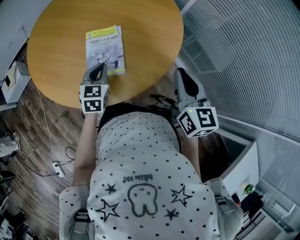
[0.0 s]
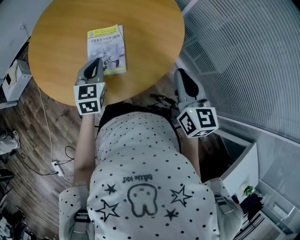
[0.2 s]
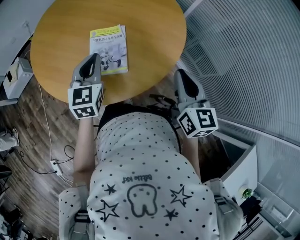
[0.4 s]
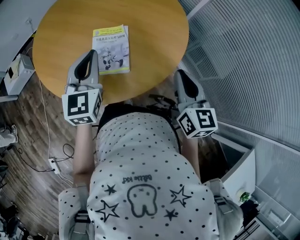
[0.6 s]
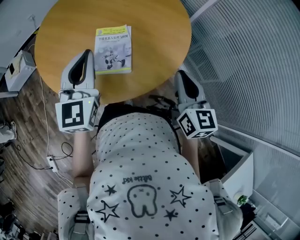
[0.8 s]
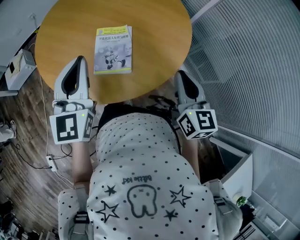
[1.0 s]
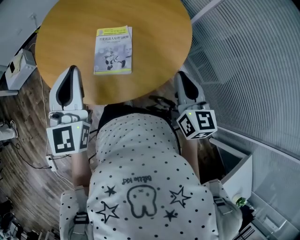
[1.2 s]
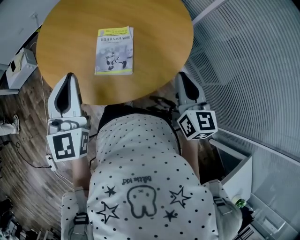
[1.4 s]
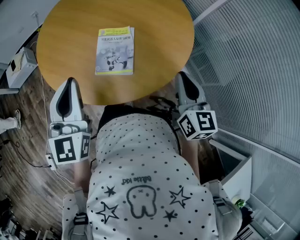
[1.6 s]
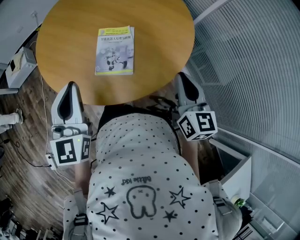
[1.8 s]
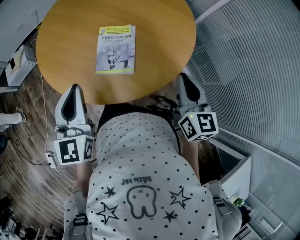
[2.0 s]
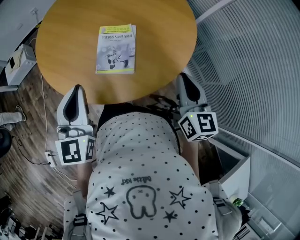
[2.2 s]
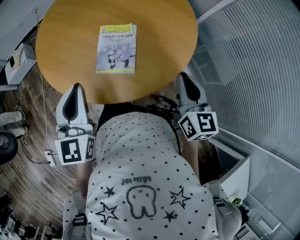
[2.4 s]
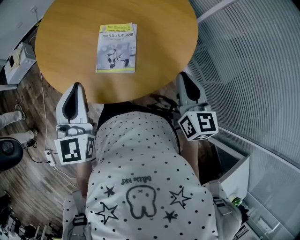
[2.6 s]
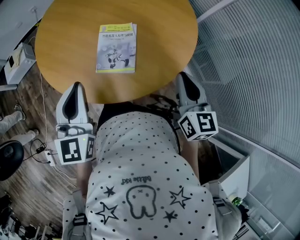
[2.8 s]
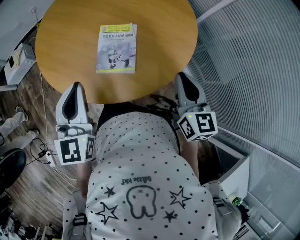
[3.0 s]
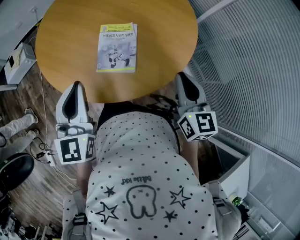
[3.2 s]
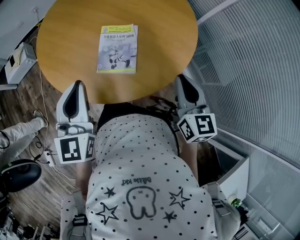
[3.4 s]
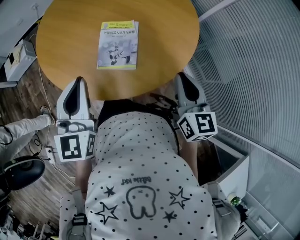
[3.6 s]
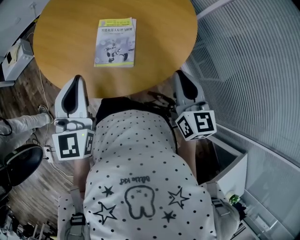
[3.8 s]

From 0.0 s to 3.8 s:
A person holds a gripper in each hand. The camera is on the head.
From 0.0 s to 1.2 s: The left gripper is displaced upward by approximately 20 cm, and swivels about 30 degrees.
From 1.2 s to 2.6 s: The left gripper changes place by approximately 5 cm.
From 2.6 s to 3.8 s: There are only small adjustments of the grippers.

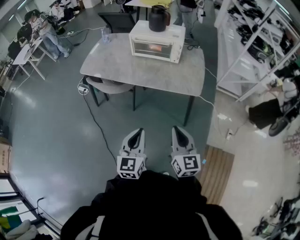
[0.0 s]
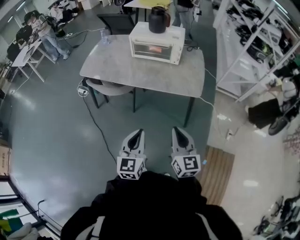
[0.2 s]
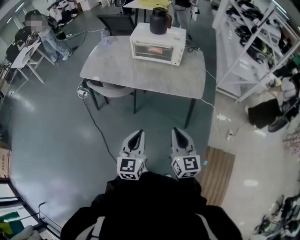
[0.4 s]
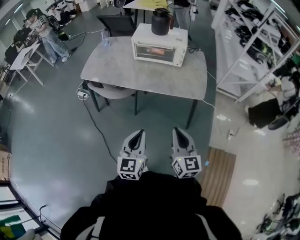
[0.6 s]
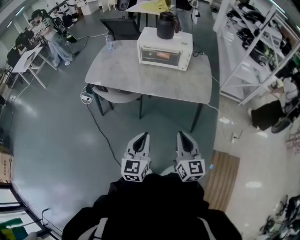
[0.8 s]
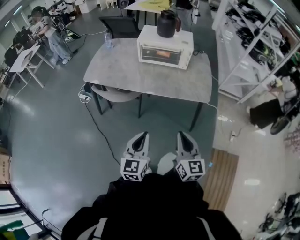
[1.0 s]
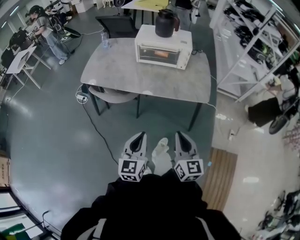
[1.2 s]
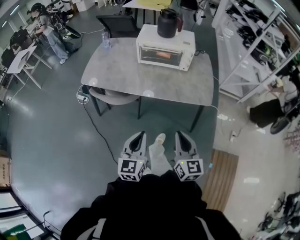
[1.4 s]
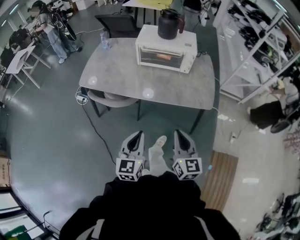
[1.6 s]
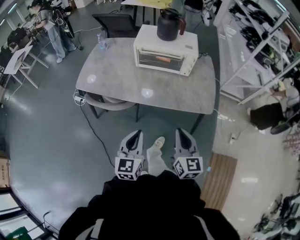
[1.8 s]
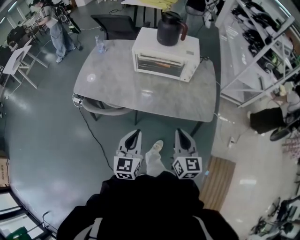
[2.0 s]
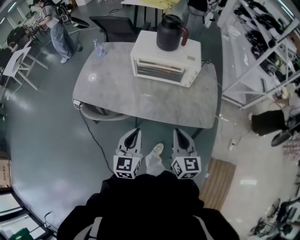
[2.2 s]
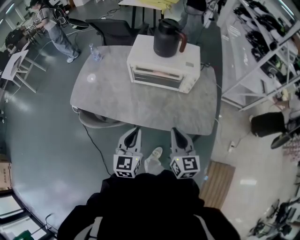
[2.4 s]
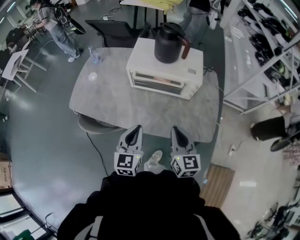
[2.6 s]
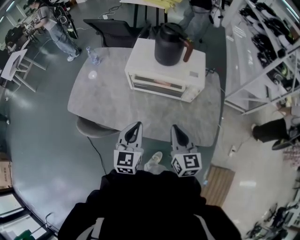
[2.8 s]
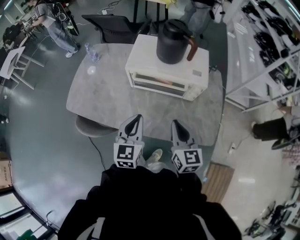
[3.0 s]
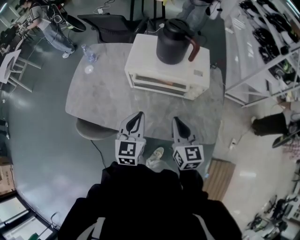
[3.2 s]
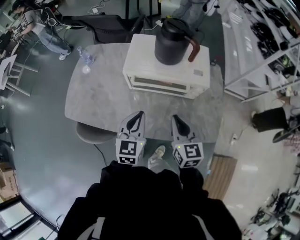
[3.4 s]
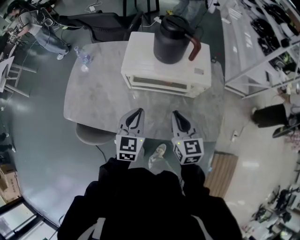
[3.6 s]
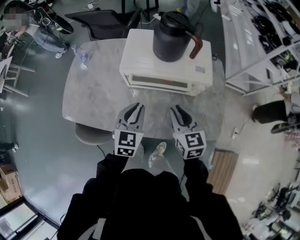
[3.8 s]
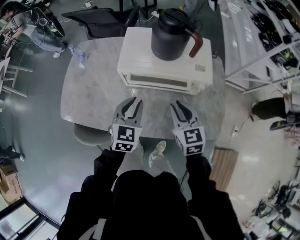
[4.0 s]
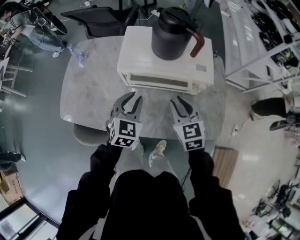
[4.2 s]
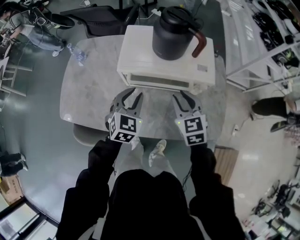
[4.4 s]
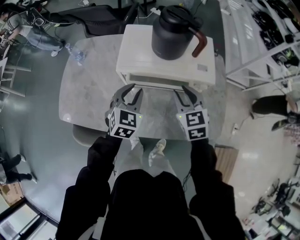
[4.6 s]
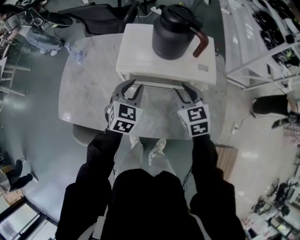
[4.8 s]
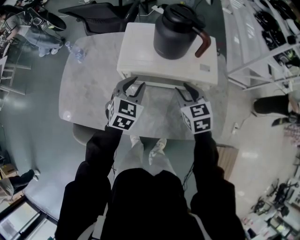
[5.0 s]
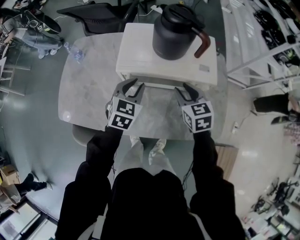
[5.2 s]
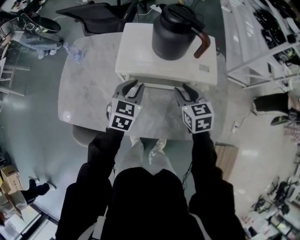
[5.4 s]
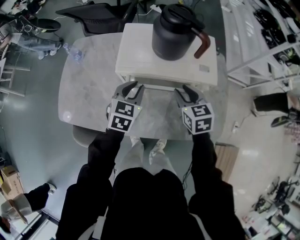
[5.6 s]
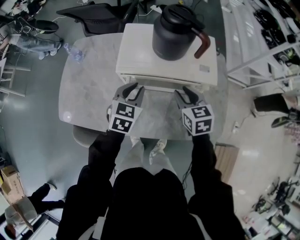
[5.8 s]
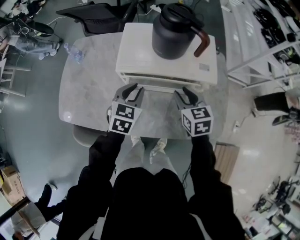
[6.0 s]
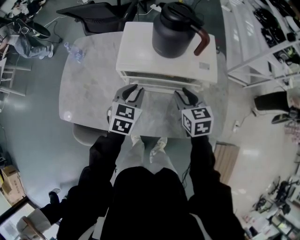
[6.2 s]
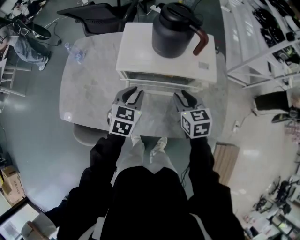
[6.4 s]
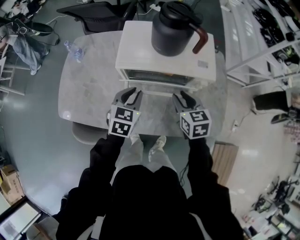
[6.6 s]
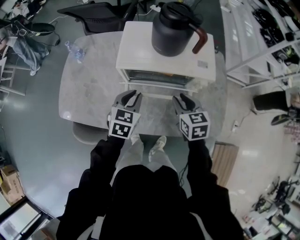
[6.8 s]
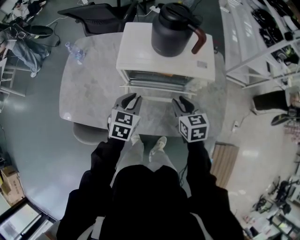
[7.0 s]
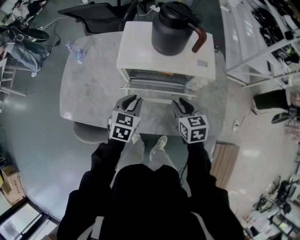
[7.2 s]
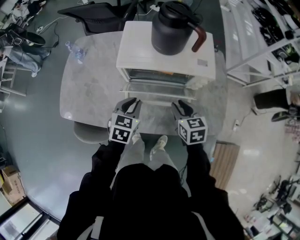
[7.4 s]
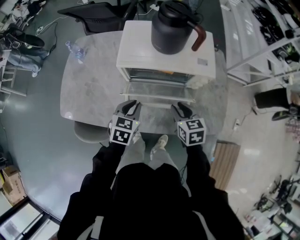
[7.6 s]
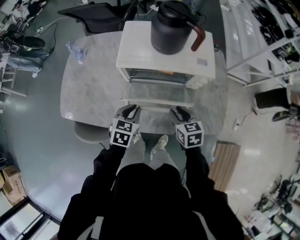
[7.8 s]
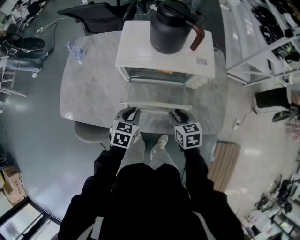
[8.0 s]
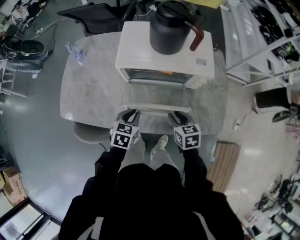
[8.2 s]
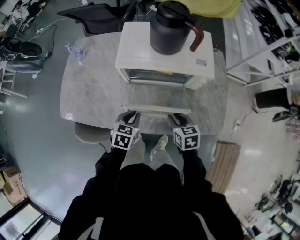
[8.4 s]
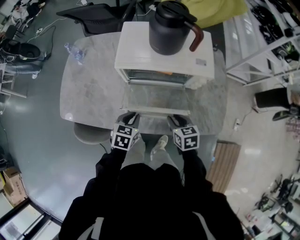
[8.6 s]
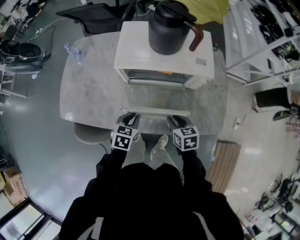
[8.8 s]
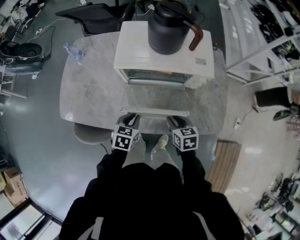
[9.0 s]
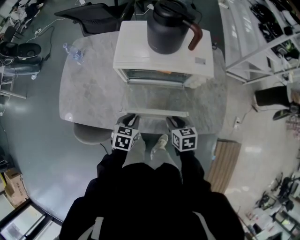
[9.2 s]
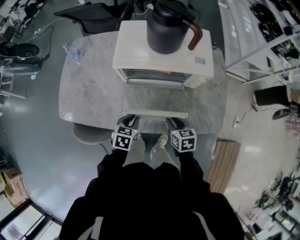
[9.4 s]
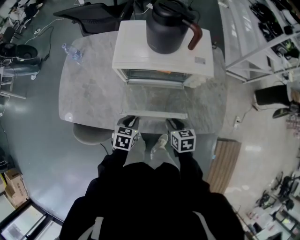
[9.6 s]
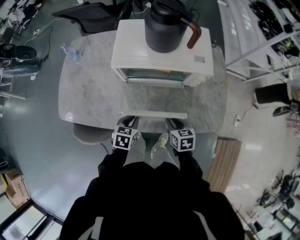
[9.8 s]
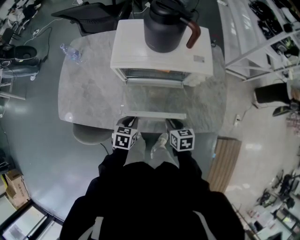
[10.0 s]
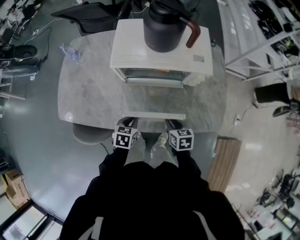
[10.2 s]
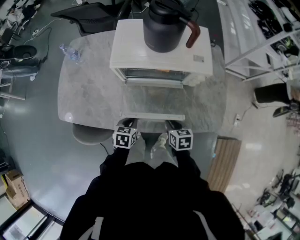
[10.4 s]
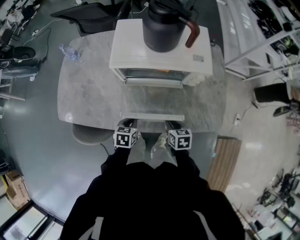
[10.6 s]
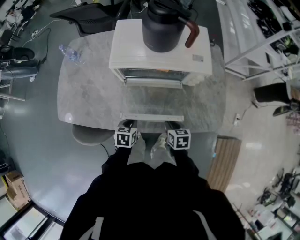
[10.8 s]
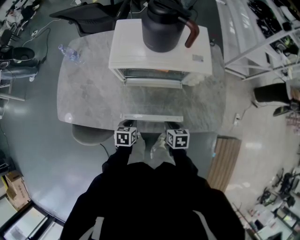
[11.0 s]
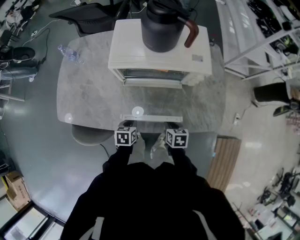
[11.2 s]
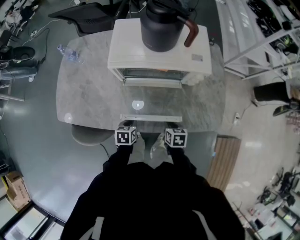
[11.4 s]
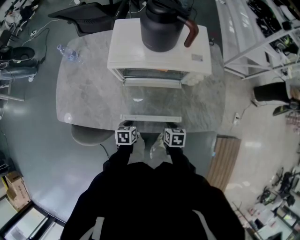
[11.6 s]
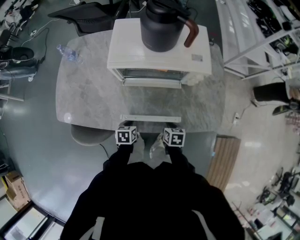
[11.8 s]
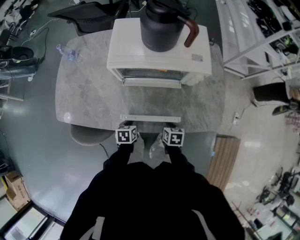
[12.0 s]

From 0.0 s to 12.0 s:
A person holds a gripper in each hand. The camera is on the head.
From 0.0 s to 1.6 s: Both grippers move forward and to the left, roughly 20 cm.
From 1.6 s to 3.0 s: Both grippers move forward, about 40 cm.
From 3.0 s to 4.4 s: The grippers both shift forward by some 15 cm. The left gripper changes its angle by about 30 degrees, and opens. Meanwhile the right gripper rotates approximately 20 degrees, and opens up.
From 4.4 s to 6.0 s: The grippers move only a little.
From 6.0 s to 7.6 s: The grippers both shift backward by approximately 10 cm.
From 7.6 s to 9.0 s: The grippers both shift downward and backward by about 10 cm.
From 9.0 s to 10.4 s: The grippers both shift downward by roughly 5 cm.
From 10.4 s to 12.0 s: The grippers both shift downward by roughly 5 cm.

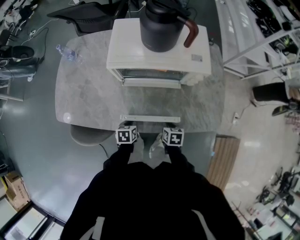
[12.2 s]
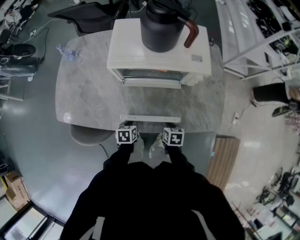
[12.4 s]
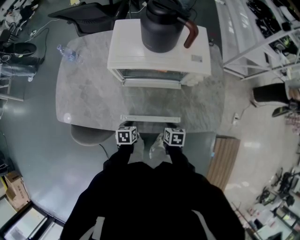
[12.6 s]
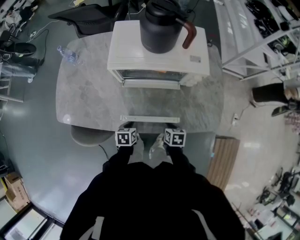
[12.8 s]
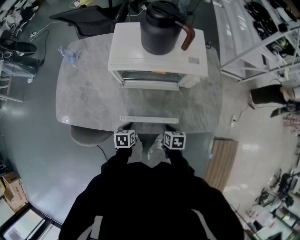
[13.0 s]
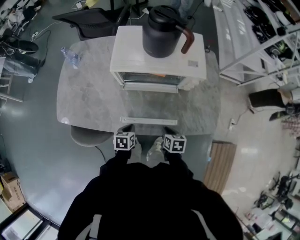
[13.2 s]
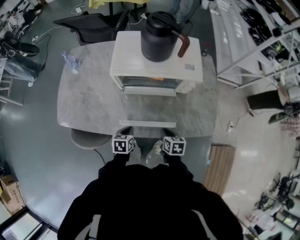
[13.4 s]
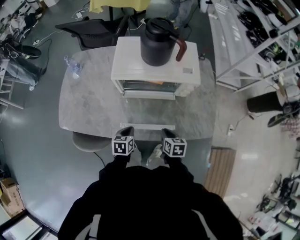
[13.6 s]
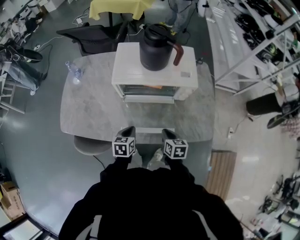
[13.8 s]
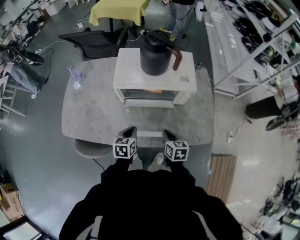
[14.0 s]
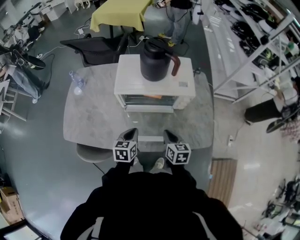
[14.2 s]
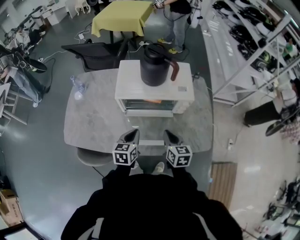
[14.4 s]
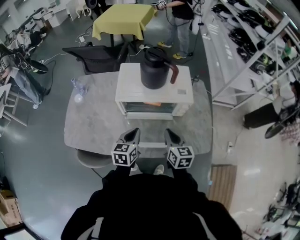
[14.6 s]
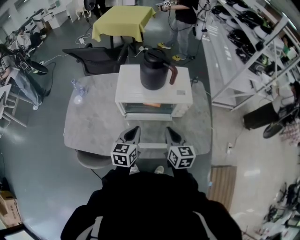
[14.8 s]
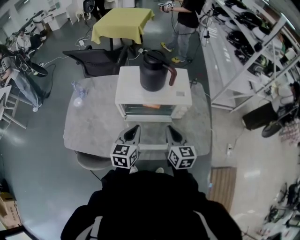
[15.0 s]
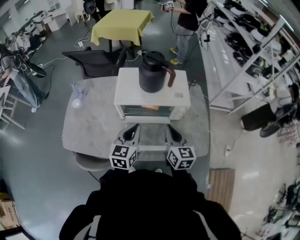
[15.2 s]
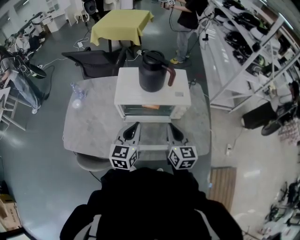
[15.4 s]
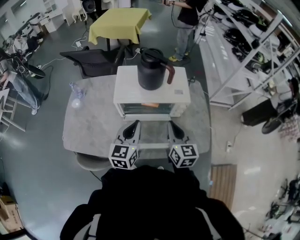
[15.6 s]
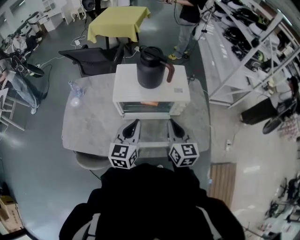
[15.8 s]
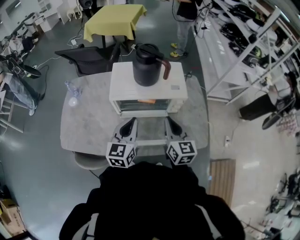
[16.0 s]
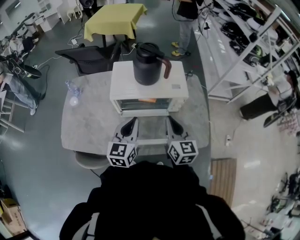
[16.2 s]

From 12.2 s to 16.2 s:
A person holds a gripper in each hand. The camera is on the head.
From 12.2 s to 13.6 s: The grippers both shift upward by some 10 cm.
From 13.6 s to 14.8 s: The grippers both shift upward by approximately 20 cm. The left gripper swivels approximately 30 degrees, while the right gripper swivels approximately 30 degrees.
From 14.8 s to 16.2 s: Both grippers travel together upward, some 5 cm.

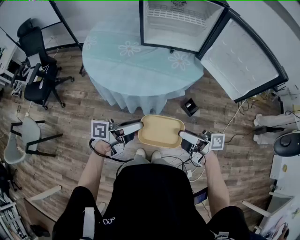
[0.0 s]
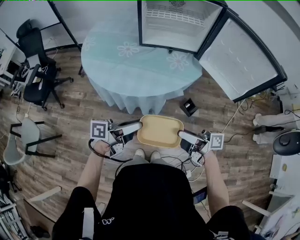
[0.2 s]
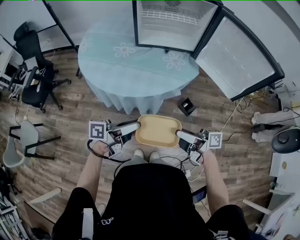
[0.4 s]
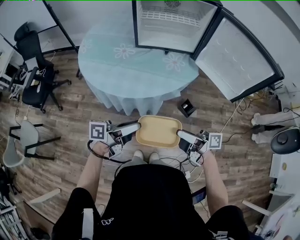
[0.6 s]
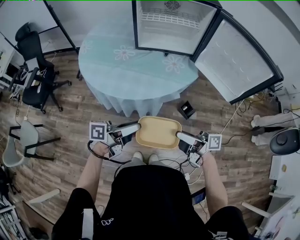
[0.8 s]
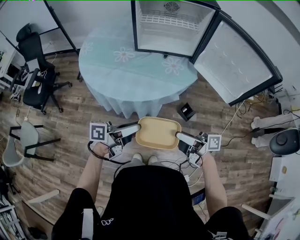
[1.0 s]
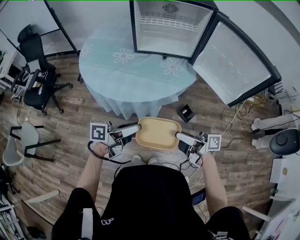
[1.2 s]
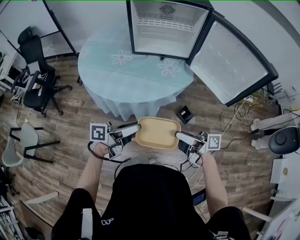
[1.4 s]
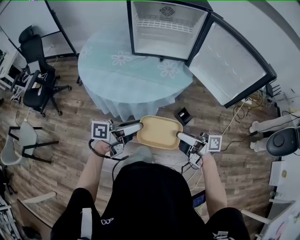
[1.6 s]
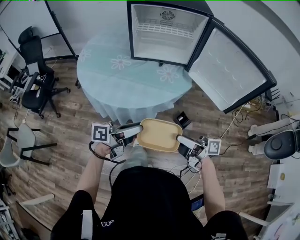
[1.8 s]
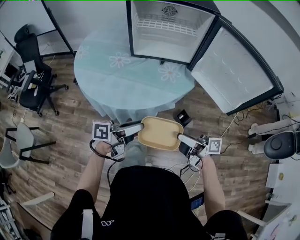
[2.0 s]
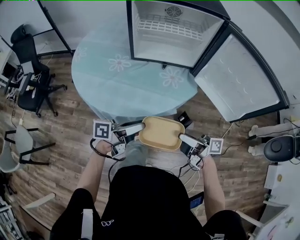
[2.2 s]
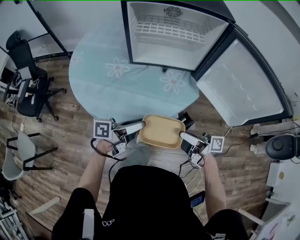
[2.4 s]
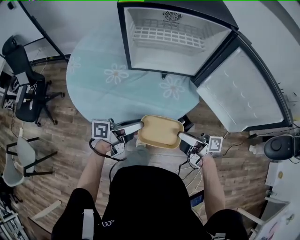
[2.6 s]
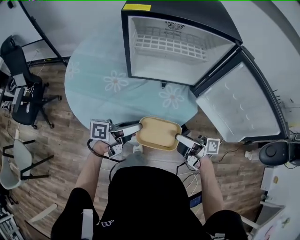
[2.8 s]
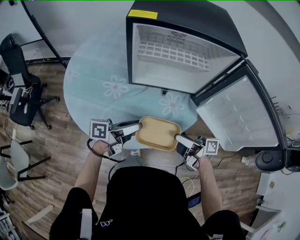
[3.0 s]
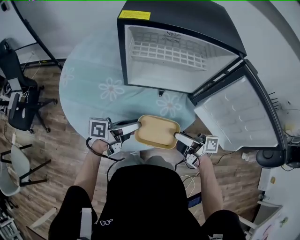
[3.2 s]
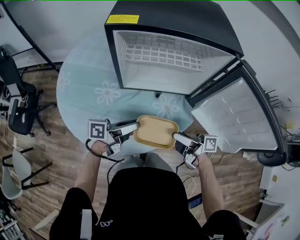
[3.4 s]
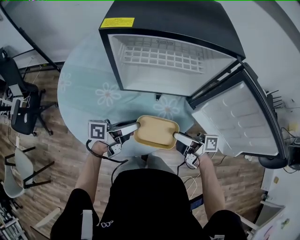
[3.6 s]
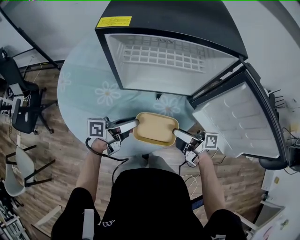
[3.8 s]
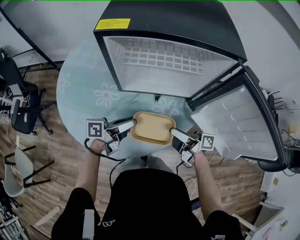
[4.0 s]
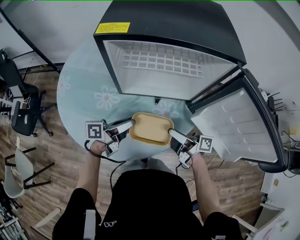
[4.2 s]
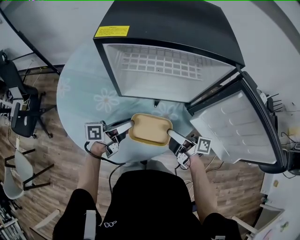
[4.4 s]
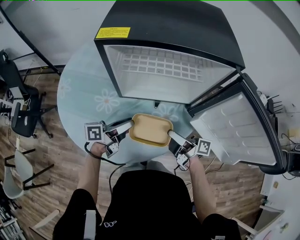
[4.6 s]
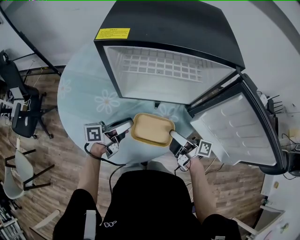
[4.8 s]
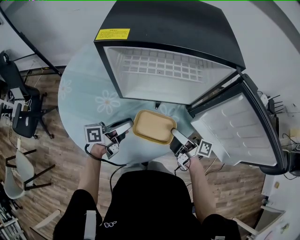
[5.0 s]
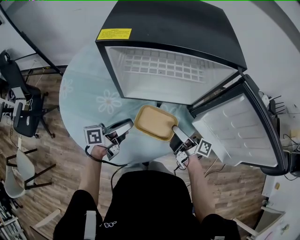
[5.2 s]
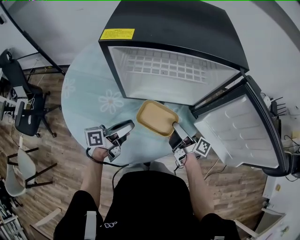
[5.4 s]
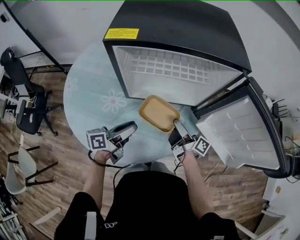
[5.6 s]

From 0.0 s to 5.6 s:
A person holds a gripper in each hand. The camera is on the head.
From 0.0 s to 1.4 s: The grippers move only a little.
From 1.4 s to 2.8 s: The right gripper changes place by about 25 cm. Meanwhile the left gripper changes place by about 25 cm.
From 2.8 s to 4.2 s: The right gripper ends up roughly 15 cm from where it was. The left gripper shifts by roughly 15 cm.
From 4.2 s to 5.6 s: The right gripper goes about 5 cm forward, and swivels some 20 degrees.
